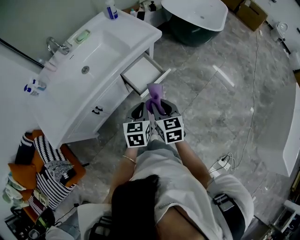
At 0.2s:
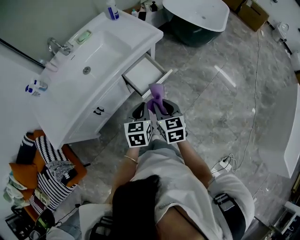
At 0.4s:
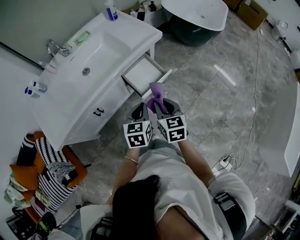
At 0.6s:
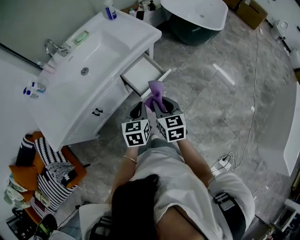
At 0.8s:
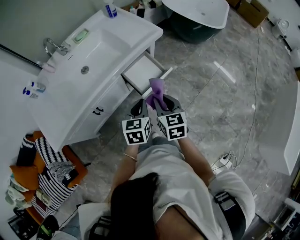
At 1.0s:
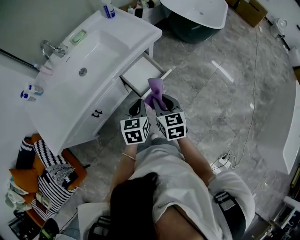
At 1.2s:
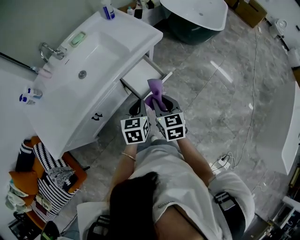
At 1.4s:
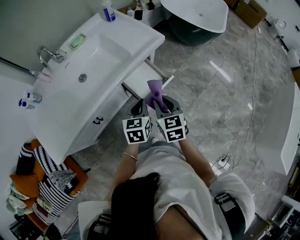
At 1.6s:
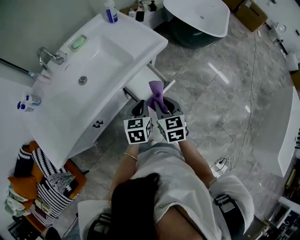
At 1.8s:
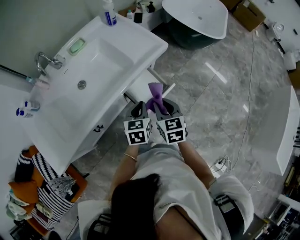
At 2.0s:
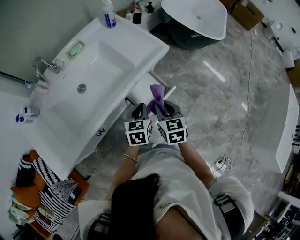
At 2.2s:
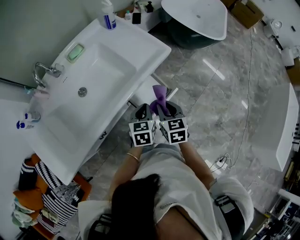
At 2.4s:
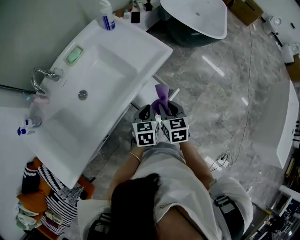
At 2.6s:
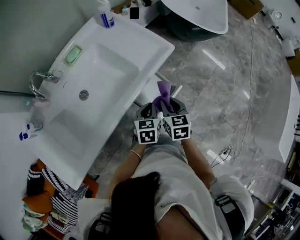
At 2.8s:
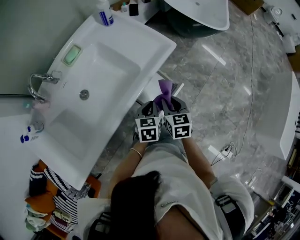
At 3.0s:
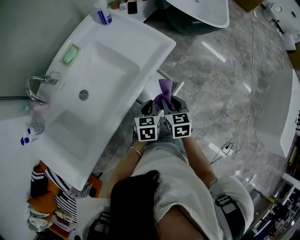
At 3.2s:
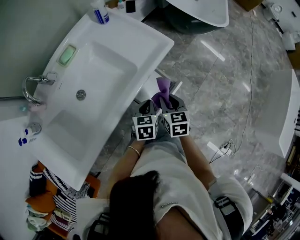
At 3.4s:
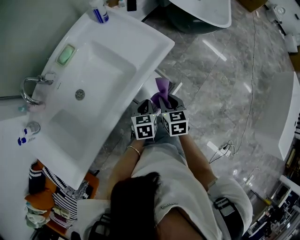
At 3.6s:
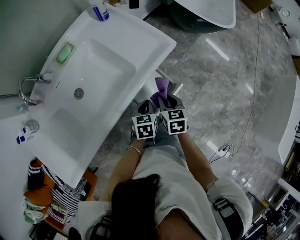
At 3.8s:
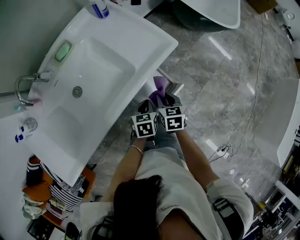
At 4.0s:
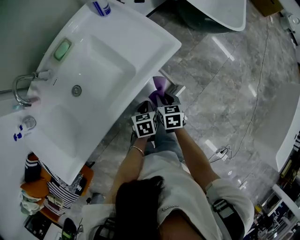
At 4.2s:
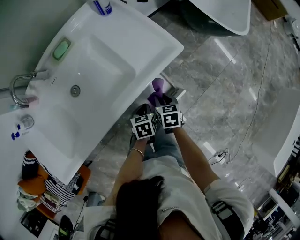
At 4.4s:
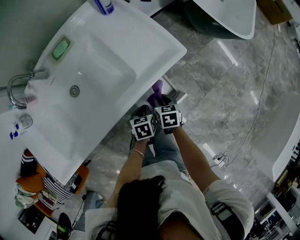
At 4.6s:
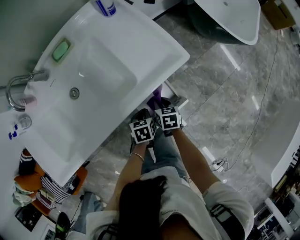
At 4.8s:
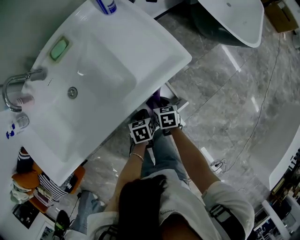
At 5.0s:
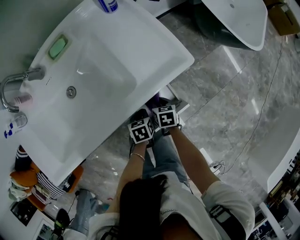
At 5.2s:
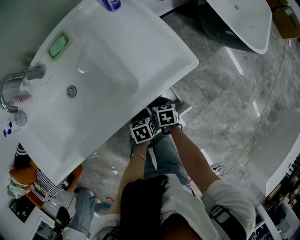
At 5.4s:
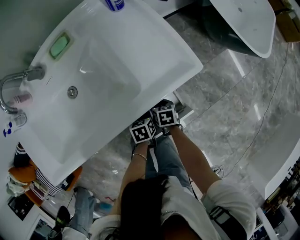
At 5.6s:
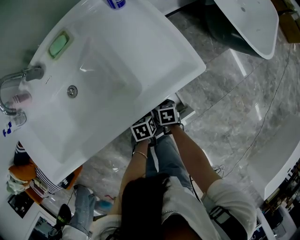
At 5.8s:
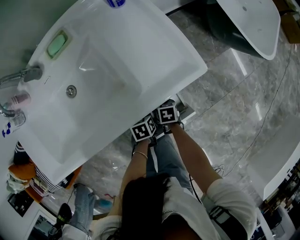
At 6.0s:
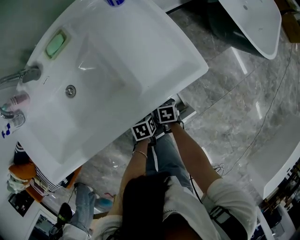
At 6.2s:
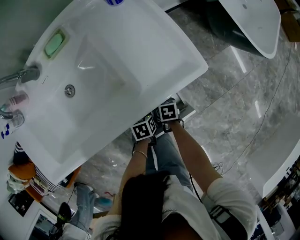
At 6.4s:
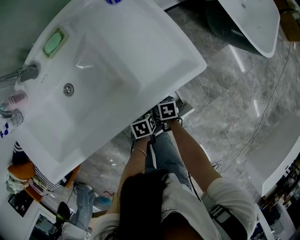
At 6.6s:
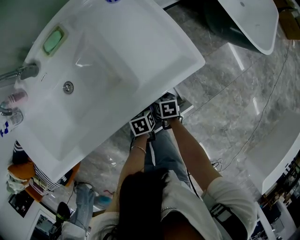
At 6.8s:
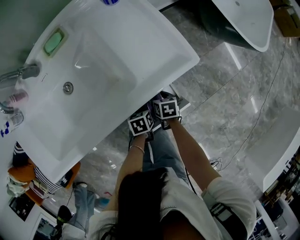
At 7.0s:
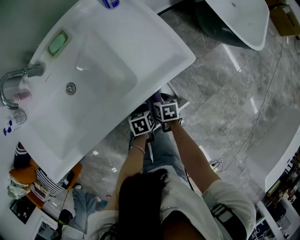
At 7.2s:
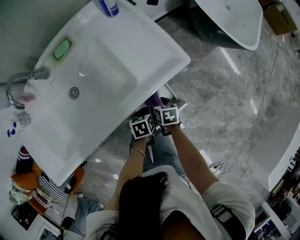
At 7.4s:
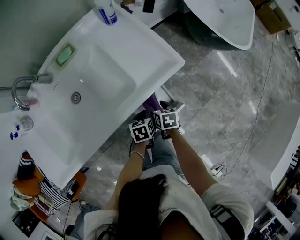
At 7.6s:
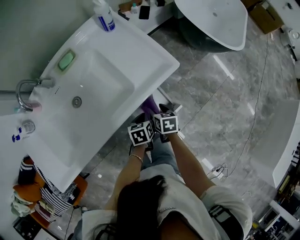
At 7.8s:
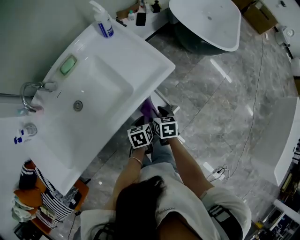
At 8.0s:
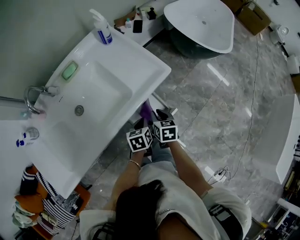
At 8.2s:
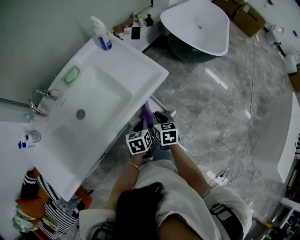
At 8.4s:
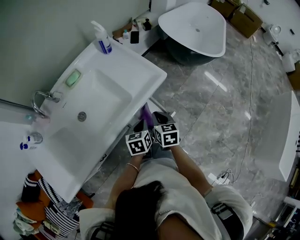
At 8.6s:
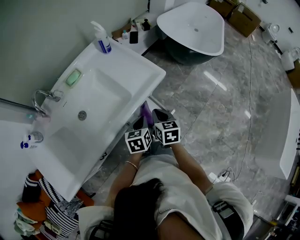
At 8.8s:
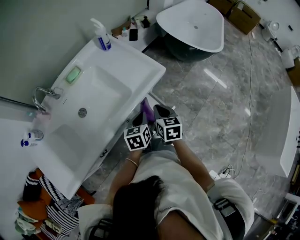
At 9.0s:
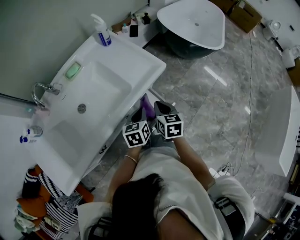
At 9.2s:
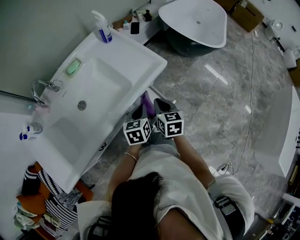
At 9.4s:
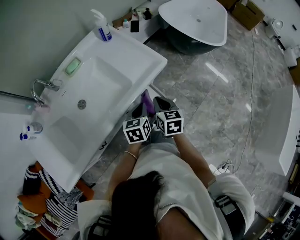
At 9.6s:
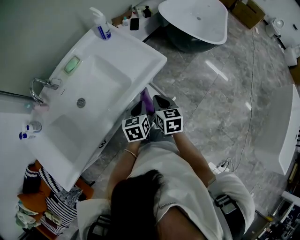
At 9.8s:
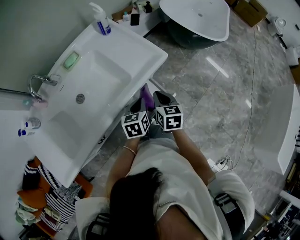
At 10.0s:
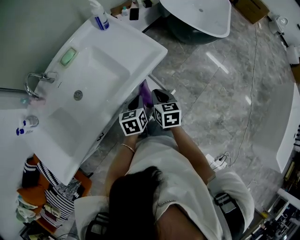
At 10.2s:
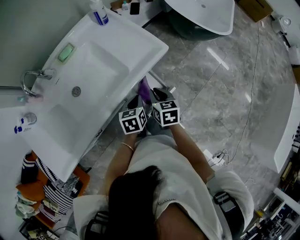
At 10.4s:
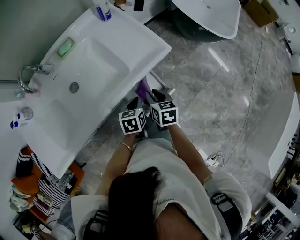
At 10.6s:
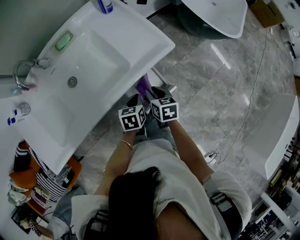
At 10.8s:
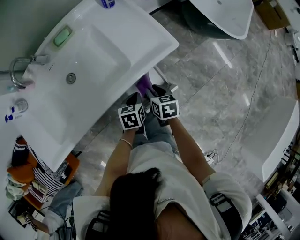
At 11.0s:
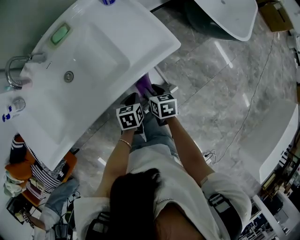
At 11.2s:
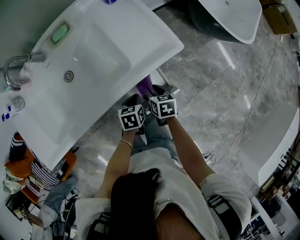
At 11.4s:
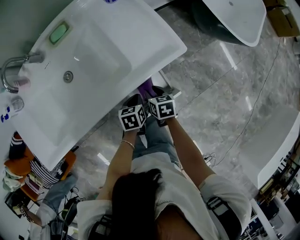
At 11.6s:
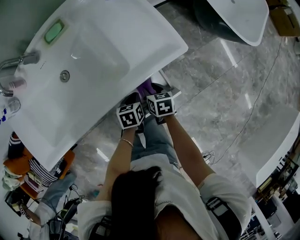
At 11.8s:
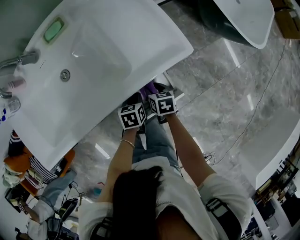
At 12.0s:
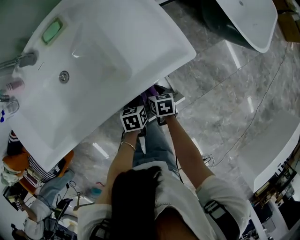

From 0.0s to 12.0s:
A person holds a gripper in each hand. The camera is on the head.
From 0.0s to 1.6s: Both grippers move forward, approximately 10 cm.
From 1.6s to 3.0s: Both grippers move forward and downward, approximately 10 cm.
From 3.0s to 4.4s: The right gripper moves downward and forward, about 15 cm, and changes its angle by about 20 degrees; the left gripper is displaced downward by about 15 cm, and swivels about 30 degrees.
From 4.4s to 6.0s: Both grippers travel together downward, about 10 cm.
From 6.0s to 7.6s: Both grippers travel together upward, about 15 cm. The right gripper opens up.
From 7.6s to 9.0s: Both grippers move upward, some 15 cm. The left gripper turns by about 20 degrees; the right gripper changes its angle by about 20 degrees, and closes.
From 9.0s to 10.4s: Both grippers move downward, approximately 5 cm.
From 10.4s to 12.0s: Both grippers travel together downward, approximately 15 cm. The right gripper rotates about 20 degrees.

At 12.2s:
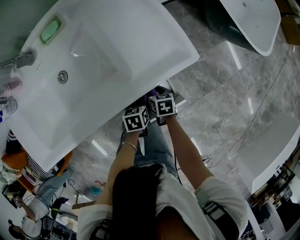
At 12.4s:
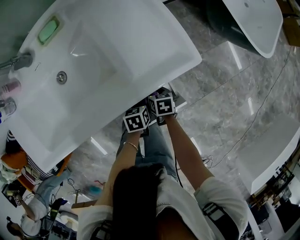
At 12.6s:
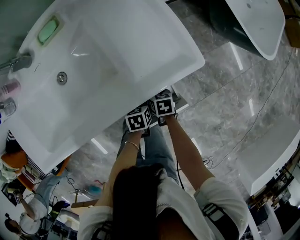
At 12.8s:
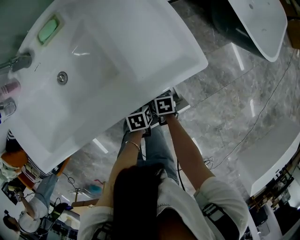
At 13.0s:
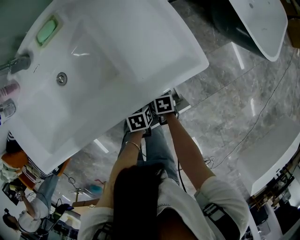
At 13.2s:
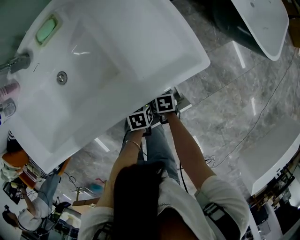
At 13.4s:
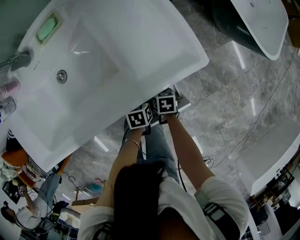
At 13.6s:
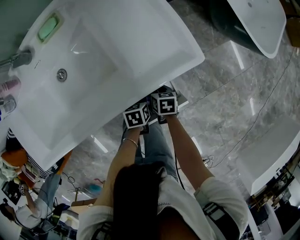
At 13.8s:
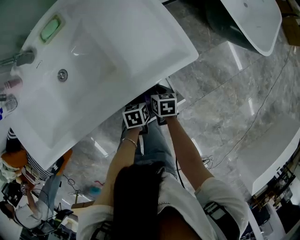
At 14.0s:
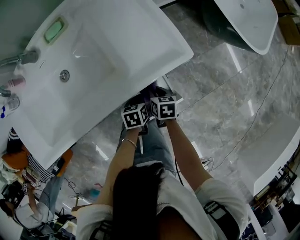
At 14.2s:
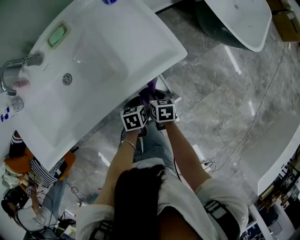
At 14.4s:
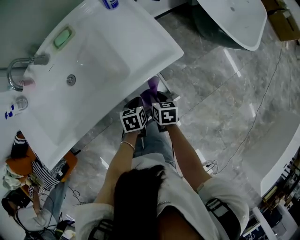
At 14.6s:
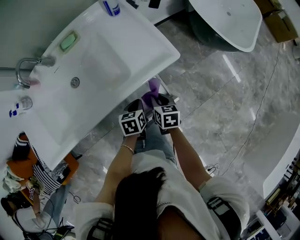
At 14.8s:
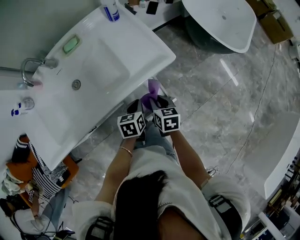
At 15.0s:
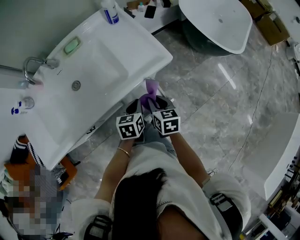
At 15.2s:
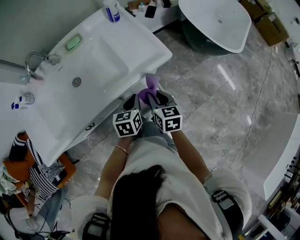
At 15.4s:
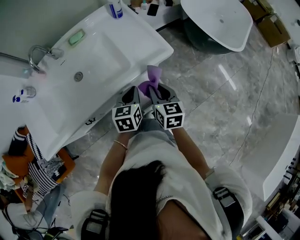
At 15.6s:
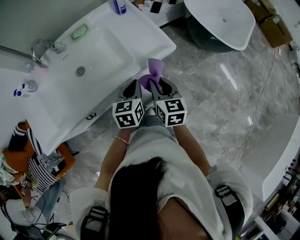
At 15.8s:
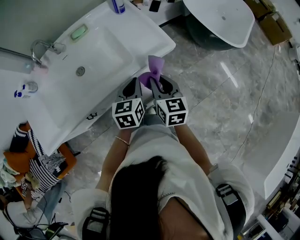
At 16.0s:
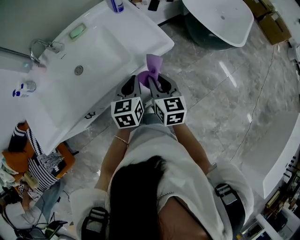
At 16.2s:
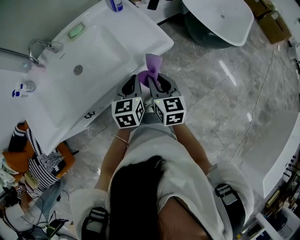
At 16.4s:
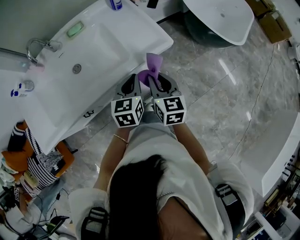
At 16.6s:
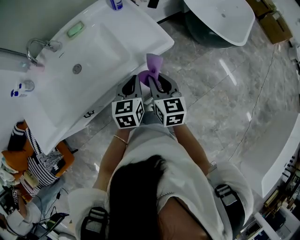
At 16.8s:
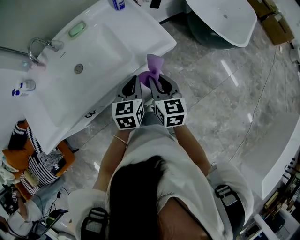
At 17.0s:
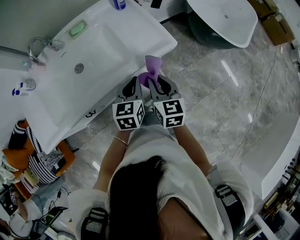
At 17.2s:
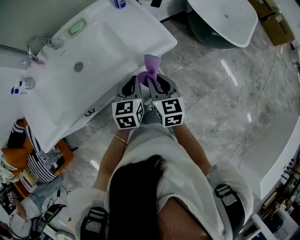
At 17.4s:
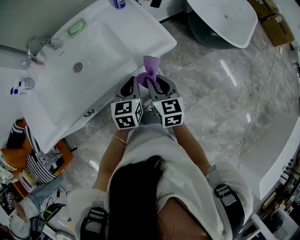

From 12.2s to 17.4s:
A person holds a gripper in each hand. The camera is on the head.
From 12.2s to 14.0s: The right gripper closes.
From 14.0s to 15.6s: The two grippers go some 25 cm upward. The right gripper tips its fingers upward by some 30 degrees, while the left gripper tips its fingers upward by approximately 30 degrees.
From 15.6s to 17.4s: The grippers make only small movements.

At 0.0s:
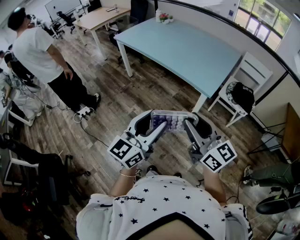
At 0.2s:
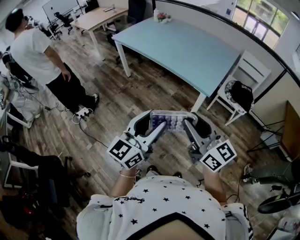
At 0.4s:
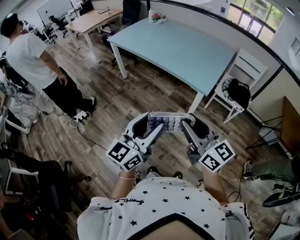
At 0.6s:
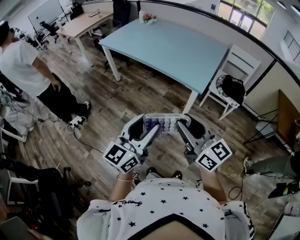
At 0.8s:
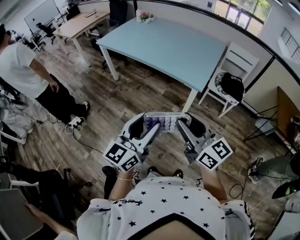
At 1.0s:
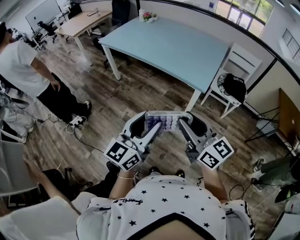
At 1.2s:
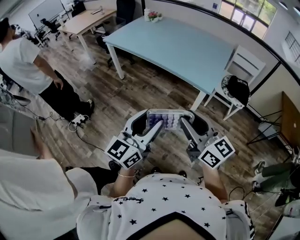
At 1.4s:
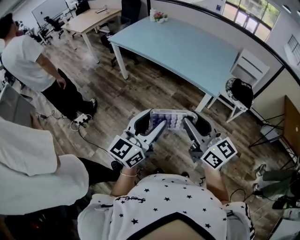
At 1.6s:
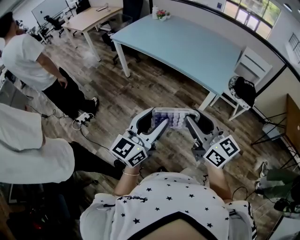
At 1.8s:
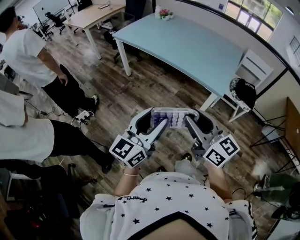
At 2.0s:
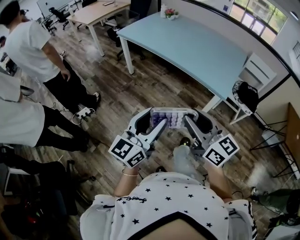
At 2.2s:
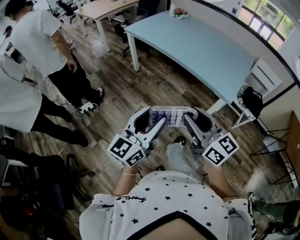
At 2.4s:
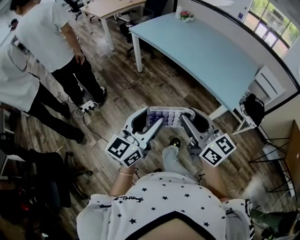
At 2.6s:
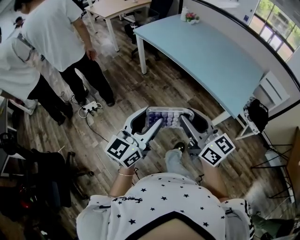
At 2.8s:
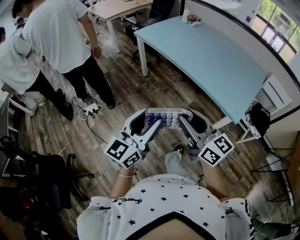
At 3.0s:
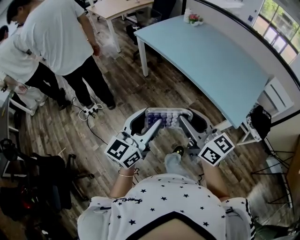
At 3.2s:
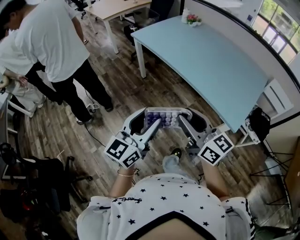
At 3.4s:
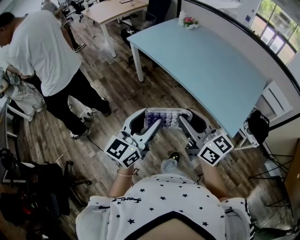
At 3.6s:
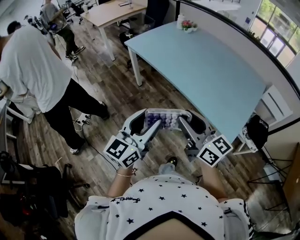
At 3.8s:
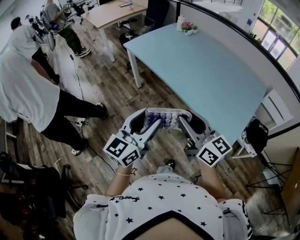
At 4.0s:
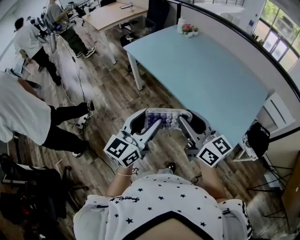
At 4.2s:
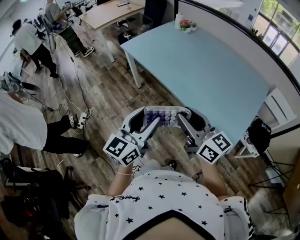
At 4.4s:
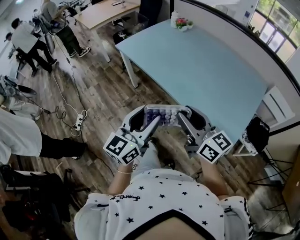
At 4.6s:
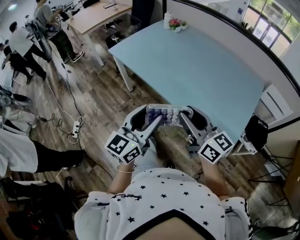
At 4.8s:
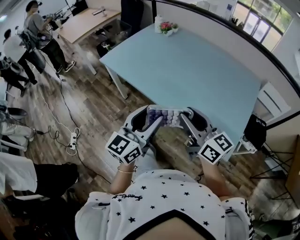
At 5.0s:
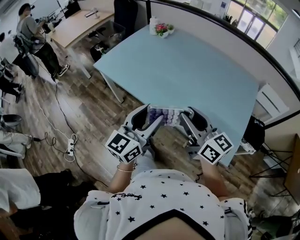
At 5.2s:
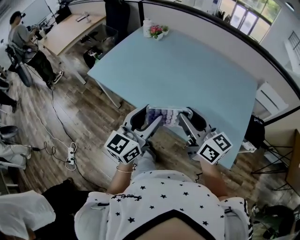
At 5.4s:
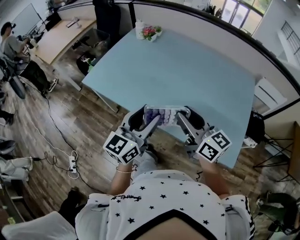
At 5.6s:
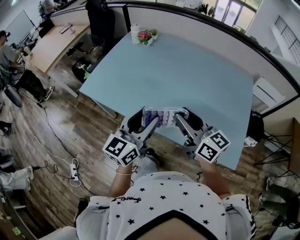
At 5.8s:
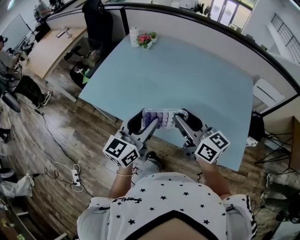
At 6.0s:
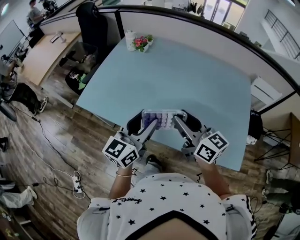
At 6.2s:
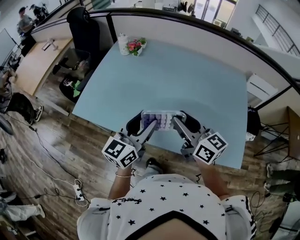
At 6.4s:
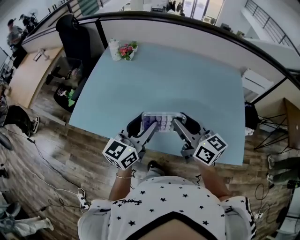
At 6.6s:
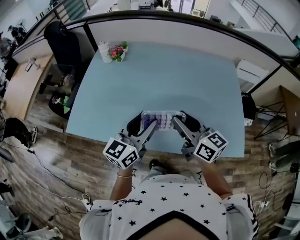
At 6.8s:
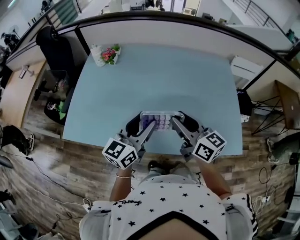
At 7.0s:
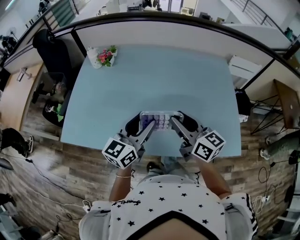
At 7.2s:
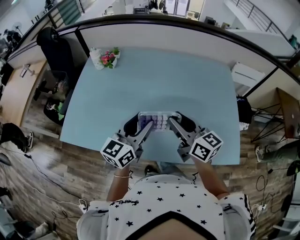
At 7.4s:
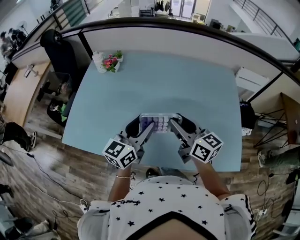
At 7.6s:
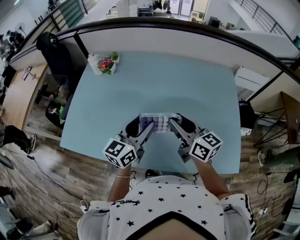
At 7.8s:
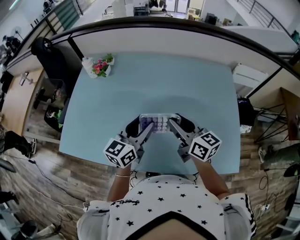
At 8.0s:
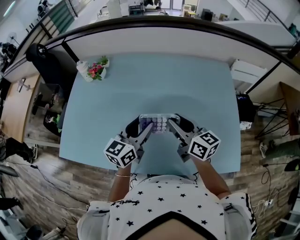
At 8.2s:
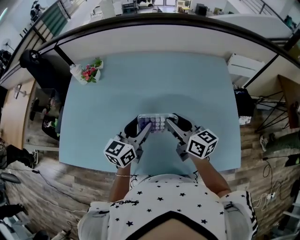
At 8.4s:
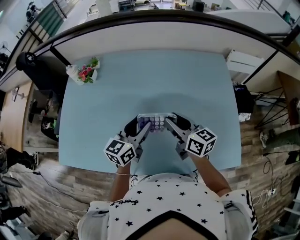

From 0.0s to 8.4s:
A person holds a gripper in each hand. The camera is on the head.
From 0.0s to 1.4s: Both grippers move to the left, roughly 10 cm.
From 1.4s to 2.8s: Both grippers travel together forward and to the left, roughly 15 cm.
From 2.8s to 4.2s: The grippers both shift forward and to the right by about 20 cm.
From 4.2s to 5.6s: The two grippers go some 30 cm forward. The left gripper turns by roughly 20 degrees, while the right gripper turns by approximately 20 degrees.
From 5.6s to 7.0s: The two grippers go about 10 cm forward. The left gripper changes its angle by some 20 degrees; the right gripper rotates approximately 20 degrees.
From 7.0s to 8.4s: The two grippers go approximately 15 cm forward, downward and to the right.
